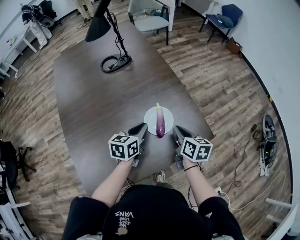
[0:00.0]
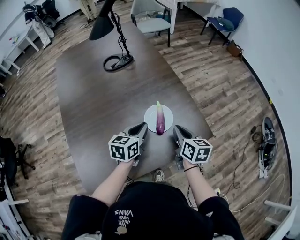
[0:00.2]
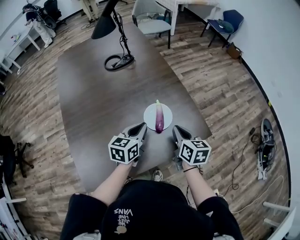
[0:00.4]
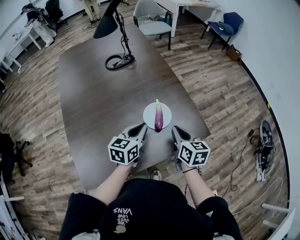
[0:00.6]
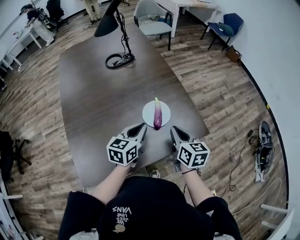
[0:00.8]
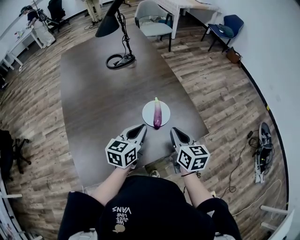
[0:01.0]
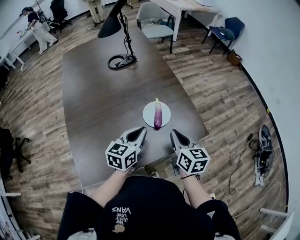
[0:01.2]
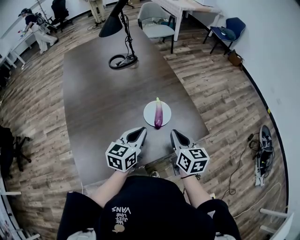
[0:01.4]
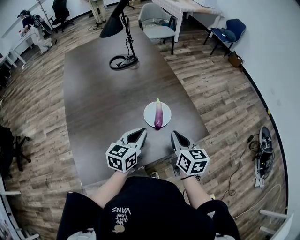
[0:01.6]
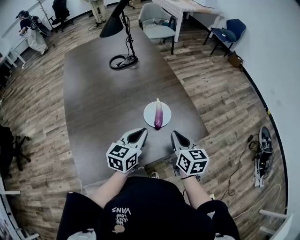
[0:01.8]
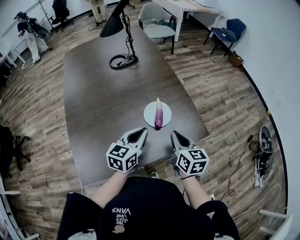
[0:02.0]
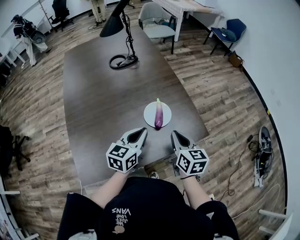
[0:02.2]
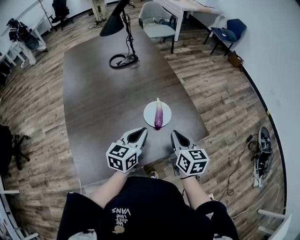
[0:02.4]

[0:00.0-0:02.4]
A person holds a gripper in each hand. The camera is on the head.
0:00.0 to 0:01.2: Both grippers travel together backward and upward, roughly 10 cm.
0:01.2 to 0:02.4: Both grippers stay put.

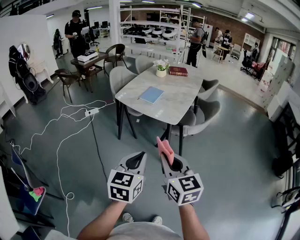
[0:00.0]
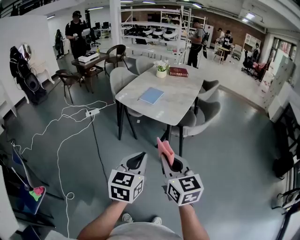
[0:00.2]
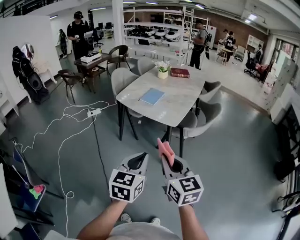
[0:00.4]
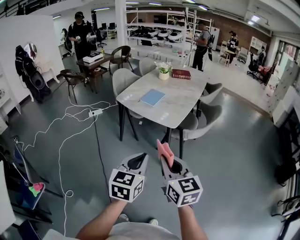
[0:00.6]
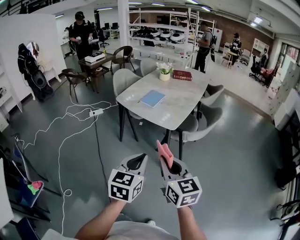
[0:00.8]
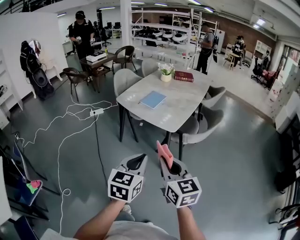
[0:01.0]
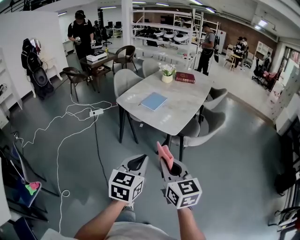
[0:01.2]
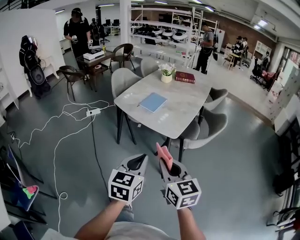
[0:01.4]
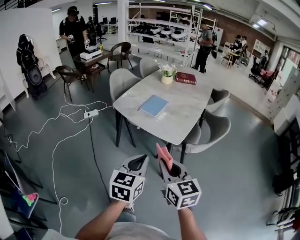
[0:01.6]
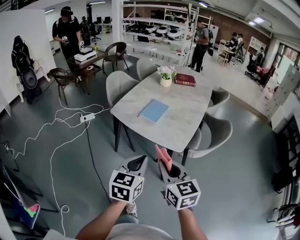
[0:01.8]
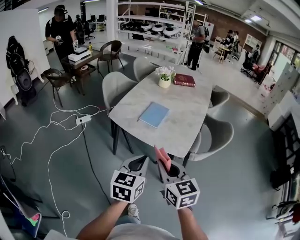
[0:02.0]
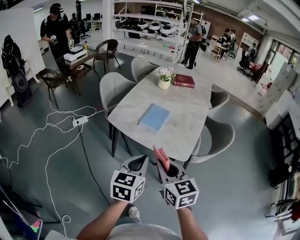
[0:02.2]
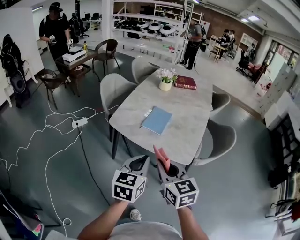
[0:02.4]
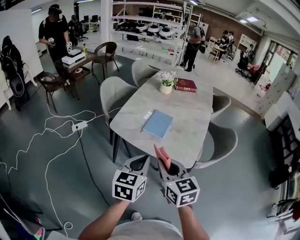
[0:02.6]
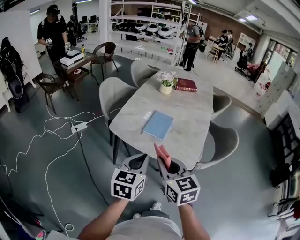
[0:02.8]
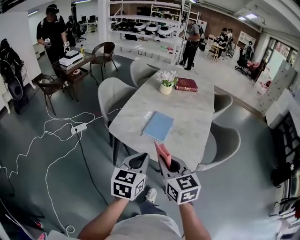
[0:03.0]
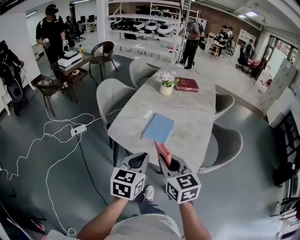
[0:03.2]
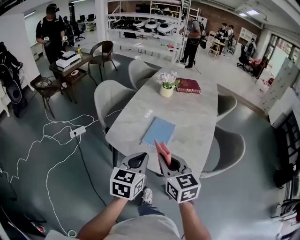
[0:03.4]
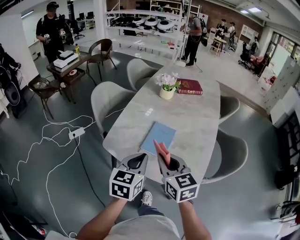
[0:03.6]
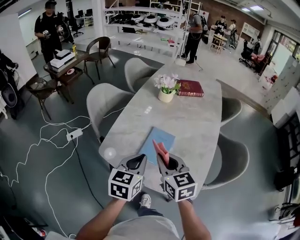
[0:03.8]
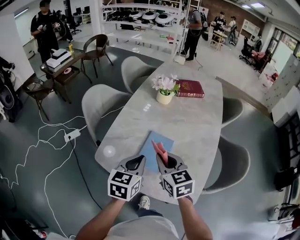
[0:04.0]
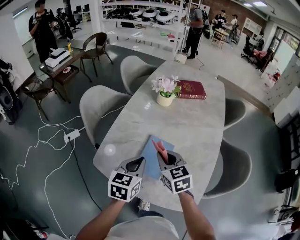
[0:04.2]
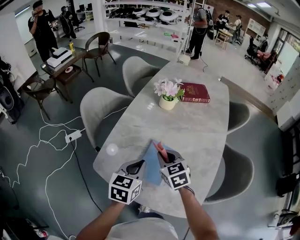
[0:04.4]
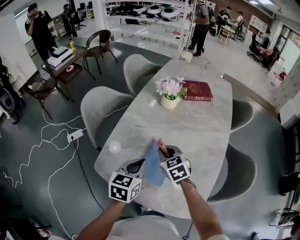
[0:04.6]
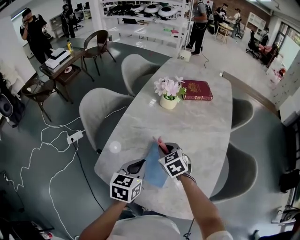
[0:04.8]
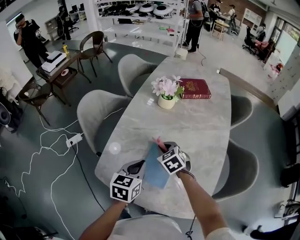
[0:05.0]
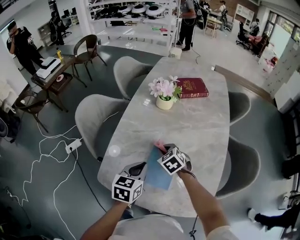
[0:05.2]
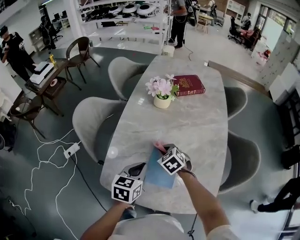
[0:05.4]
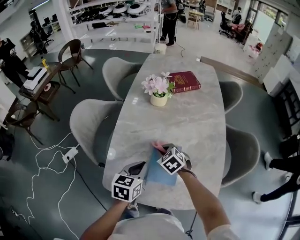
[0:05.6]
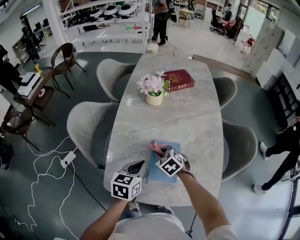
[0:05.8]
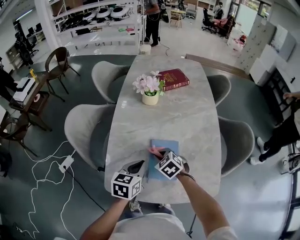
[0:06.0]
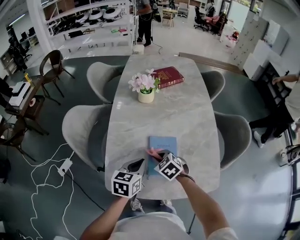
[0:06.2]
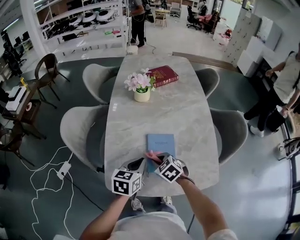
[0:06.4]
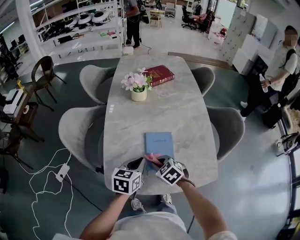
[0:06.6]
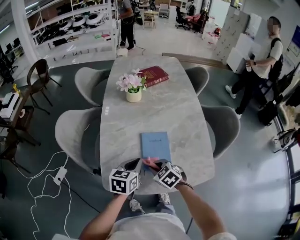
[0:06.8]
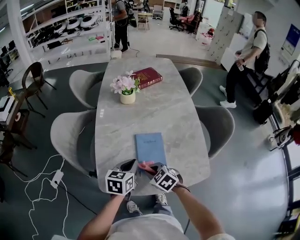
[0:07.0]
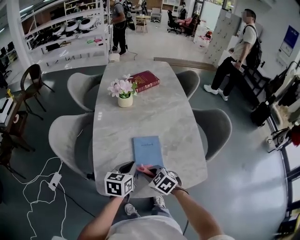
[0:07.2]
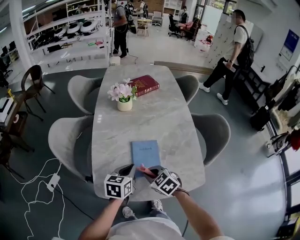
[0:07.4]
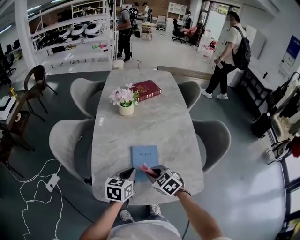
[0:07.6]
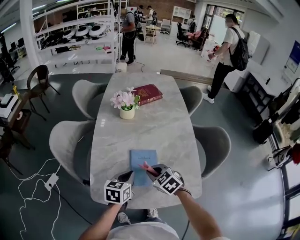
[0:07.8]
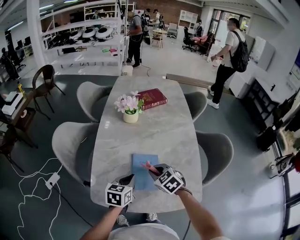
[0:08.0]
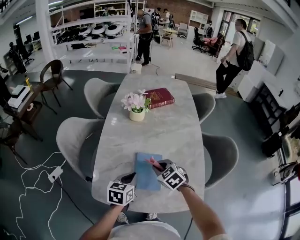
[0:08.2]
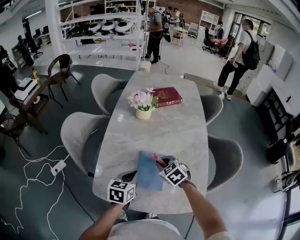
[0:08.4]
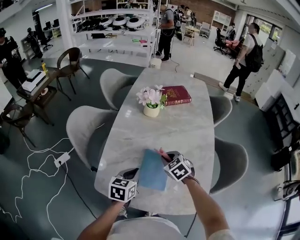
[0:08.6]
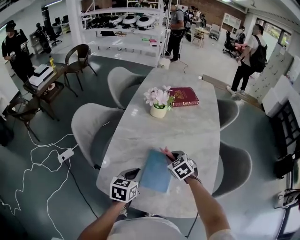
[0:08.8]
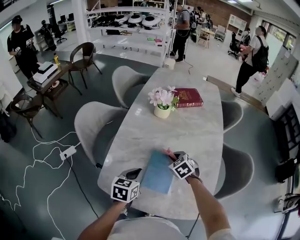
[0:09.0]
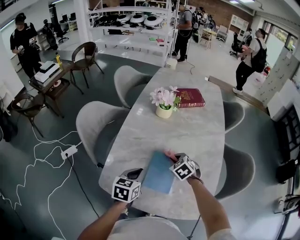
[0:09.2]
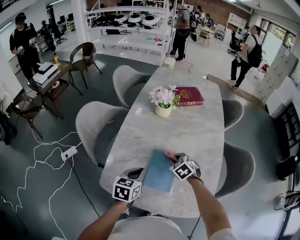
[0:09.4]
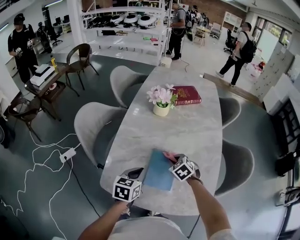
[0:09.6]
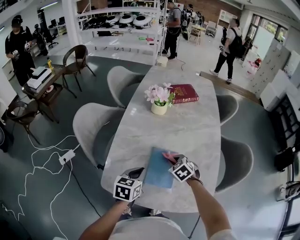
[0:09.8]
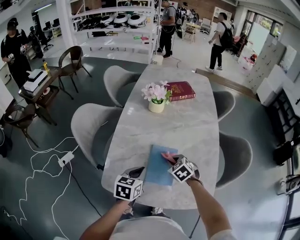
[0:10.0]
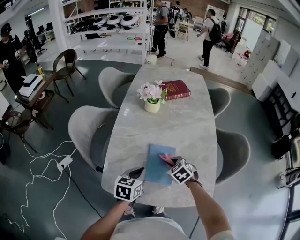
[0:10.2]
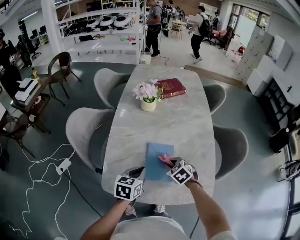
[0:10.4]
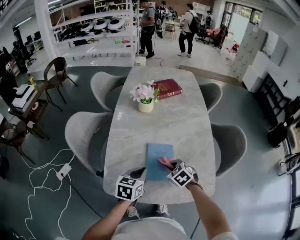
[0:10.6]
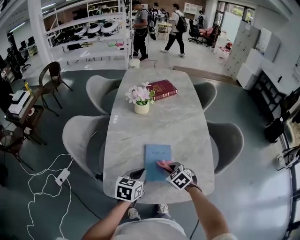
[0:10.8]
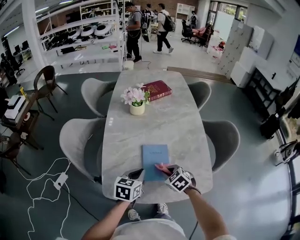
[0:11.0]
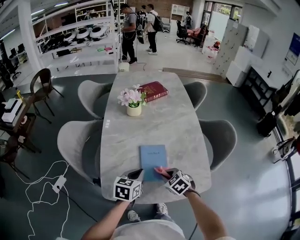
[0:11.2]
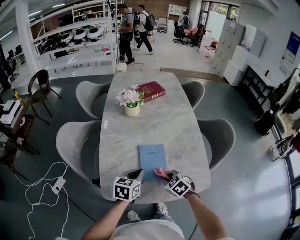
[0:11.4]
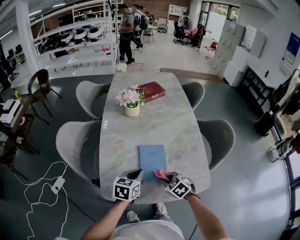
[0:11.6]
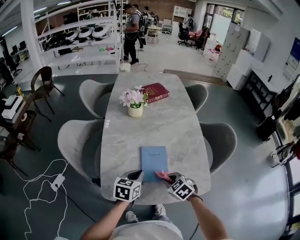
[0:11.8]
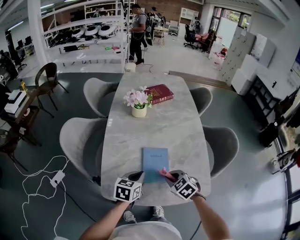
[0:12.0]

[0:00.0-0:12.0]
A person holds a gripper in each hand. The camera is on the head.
0:00.0 to 0:01.6: Both grippers travel together forward, roughly 15 cm.
0:01.6 to 0:03.0: Both grippers move forward and to the left, about 30 cm.
0:03.0 to 0:04.4: Both grippers travel together forward, roughly 35 cm.
0:04.4 to 0:06.0: The left gripper goes approximately 5 cm downward, and changes its angle by some 20 degrees. Meanwhile the right gripper is displaced downward by roughly 10 cm.
0:06.0 to 0:07.6: The right gripper heads backward and upward, covering roughly 10 cm.
0:07.6 to 0:09.0: The right gripper heads forward, covering about 15 cm.
0:09.0 to 0:10.4: The right gripper travels backward by approximately 10 cm.
0:10.4 to 0:12.0: The right gripper goes roughly 10 cm backward.

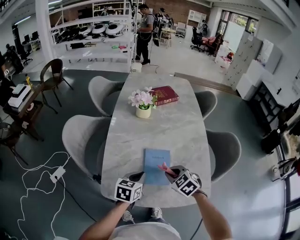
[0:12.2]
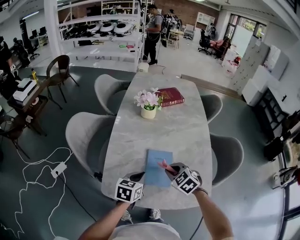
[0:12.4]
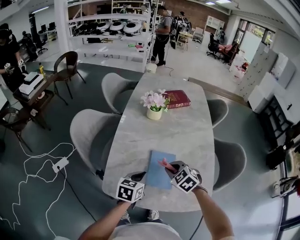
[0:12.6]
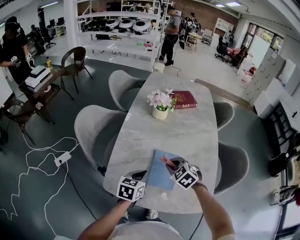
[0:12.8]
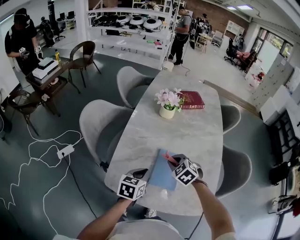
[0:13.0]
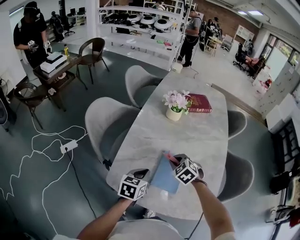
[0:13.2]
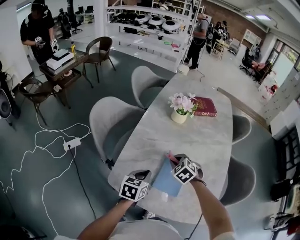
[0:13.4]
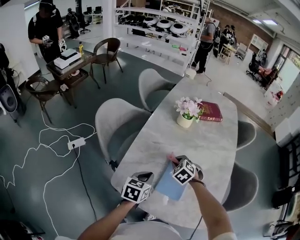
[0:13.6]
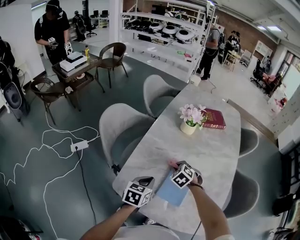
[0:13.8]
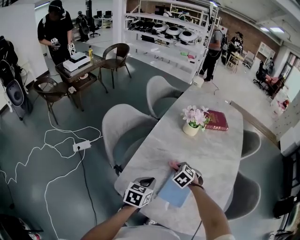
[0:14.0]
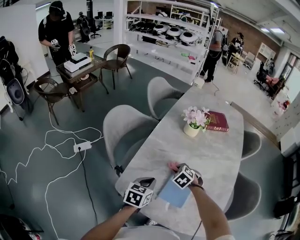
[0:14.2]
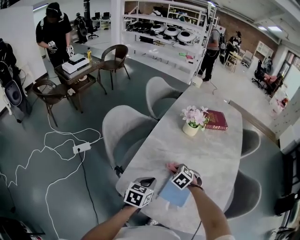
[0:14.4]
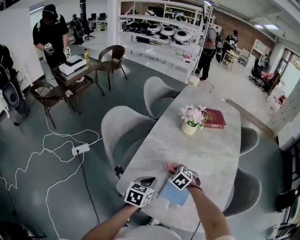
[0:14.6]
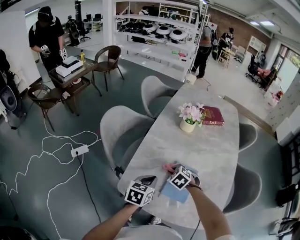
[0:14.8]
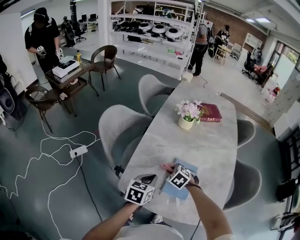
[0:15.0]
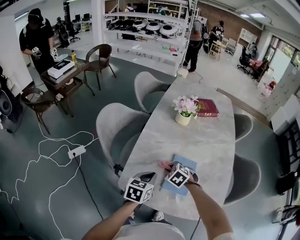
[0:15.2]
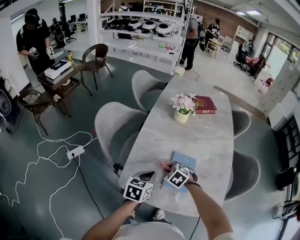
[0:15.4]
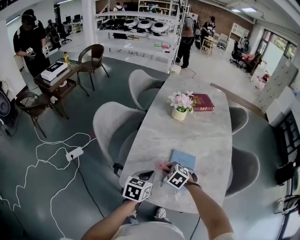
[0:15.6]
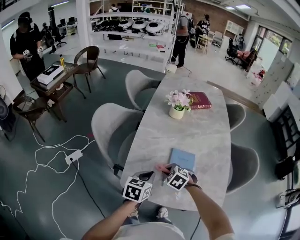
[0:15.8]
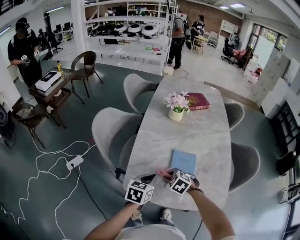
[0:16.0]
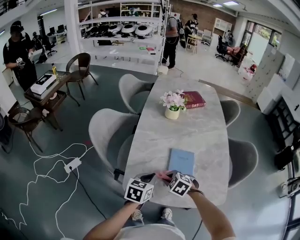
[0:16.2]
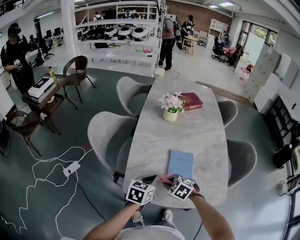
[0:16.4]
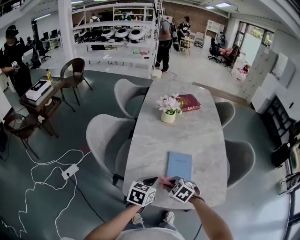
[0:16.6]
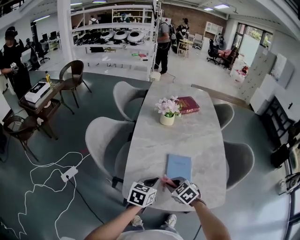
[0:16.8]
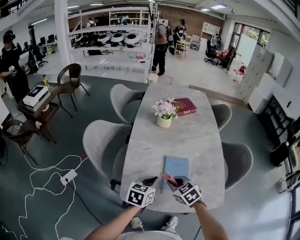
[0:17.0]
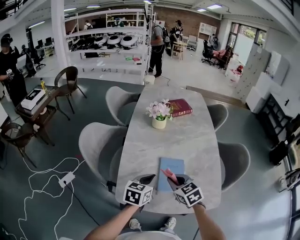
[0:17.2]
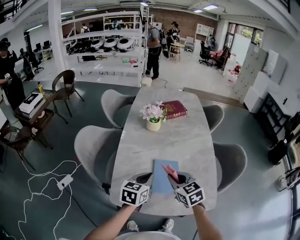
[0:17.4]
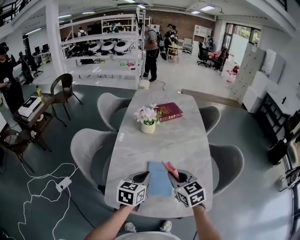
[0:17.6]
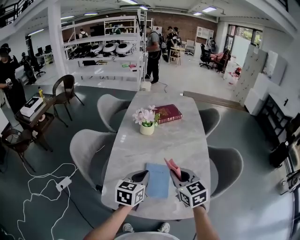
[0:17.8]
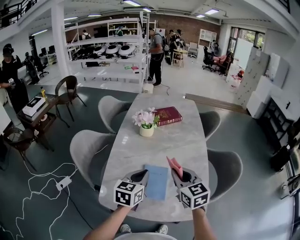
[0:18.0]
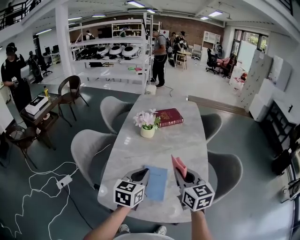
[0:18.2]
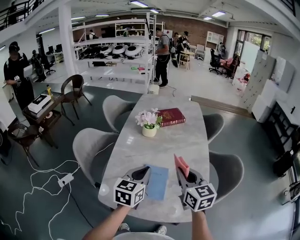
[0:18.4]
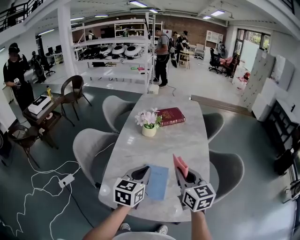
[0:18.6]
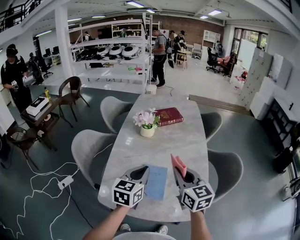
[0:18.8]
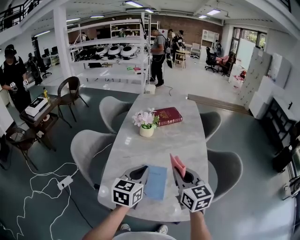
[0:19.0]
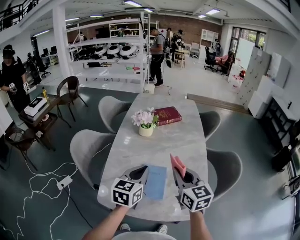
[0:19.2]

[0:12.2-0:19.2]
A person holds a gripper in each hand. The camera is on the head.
0:12.2 to 0:13.6: The right gripper is displaced forward and to the left by about 15 cm, and rotates roughly 20 degrees. Meanwhile the left gripper goes about 5 cm to the left.
0:13.6 to 0:15.0: The right gripper travels backward by some 5 cm.
0:15.0 to 0:16.4: The right gripper shifts some 10 cm backward.
0:16.4 to 0:17.8: The right gripper shifts approximately 25 cm upward and to the right, and angles its fingers upward, by approximately 40 degrees. Meanwhile the left gripper shifts roughly 15 cm upward, to the right and forward.
0:17.8 to 0:19.2: The left gripper heads upward, covering about 5 cm, while the right gripper ends up approximately 5 cm from where it was.

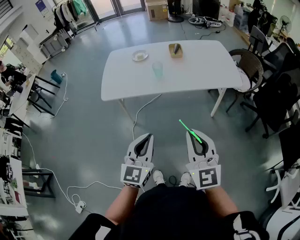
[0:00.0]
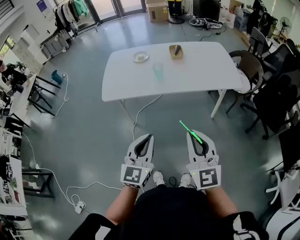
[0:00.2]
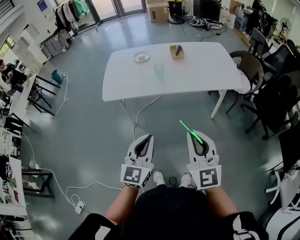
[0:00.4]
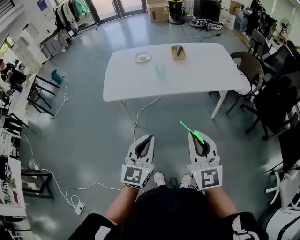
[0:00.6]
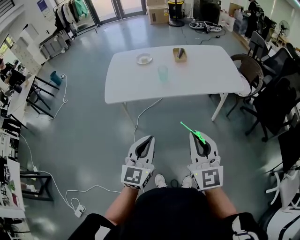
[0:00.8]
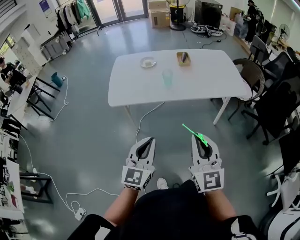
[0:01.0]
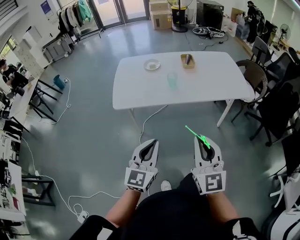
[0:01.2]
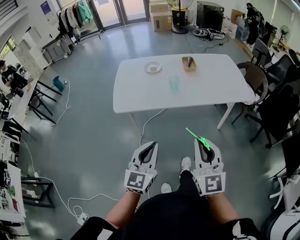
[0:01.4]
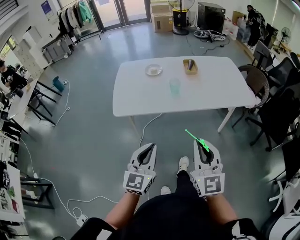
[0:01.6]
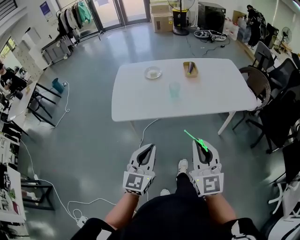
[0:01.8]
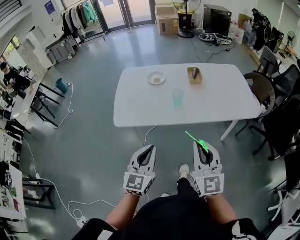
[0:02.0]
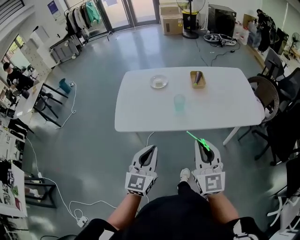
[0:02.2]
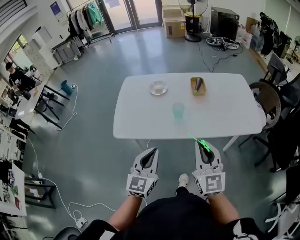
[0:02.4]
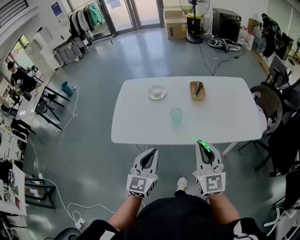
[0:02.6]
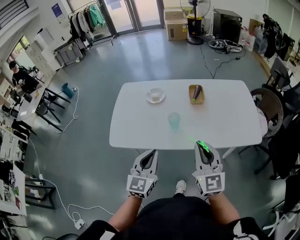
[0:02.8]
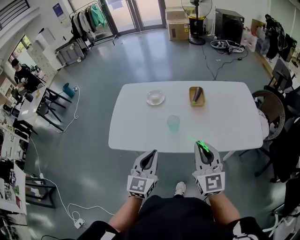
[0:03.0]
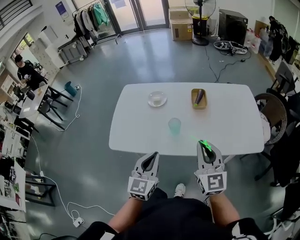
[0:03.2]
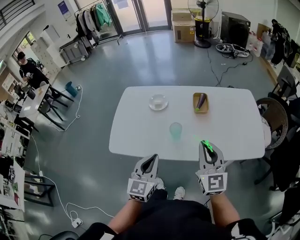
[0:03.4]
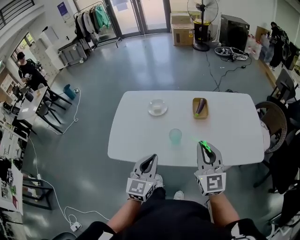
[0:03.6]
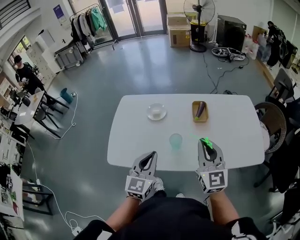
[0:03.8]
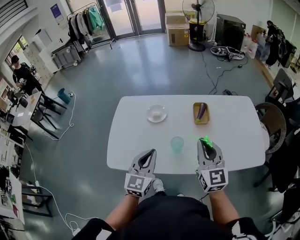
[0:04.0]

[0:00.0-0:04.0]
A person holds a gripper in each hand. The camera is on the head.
0:00.0 to 0:01.4: The grippers both shift to the left by about 10 cm.
0:01.4 to 0:02.6: The grippers both shift forward by some 25 cm.
0:02.6 to 0:04.0: The grippers both shift forward by about 20 cm.
